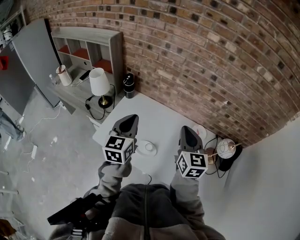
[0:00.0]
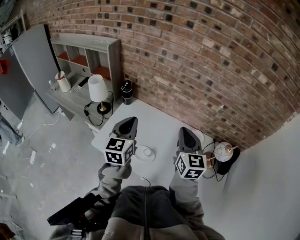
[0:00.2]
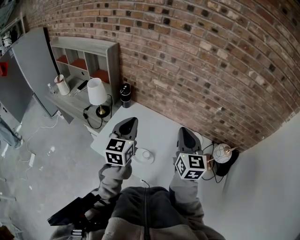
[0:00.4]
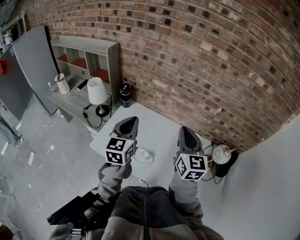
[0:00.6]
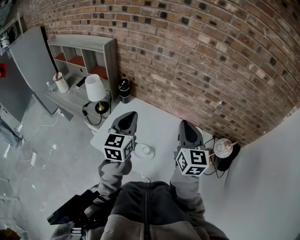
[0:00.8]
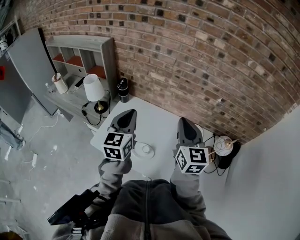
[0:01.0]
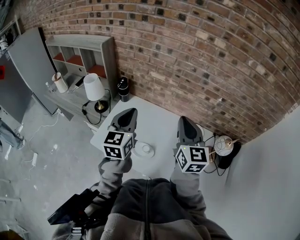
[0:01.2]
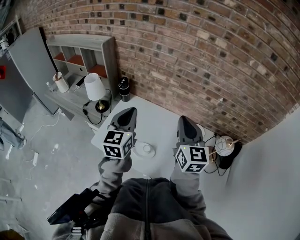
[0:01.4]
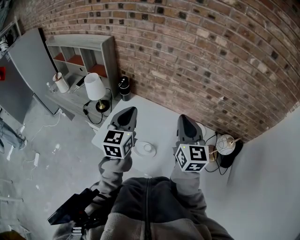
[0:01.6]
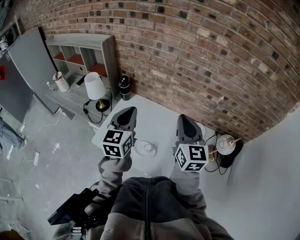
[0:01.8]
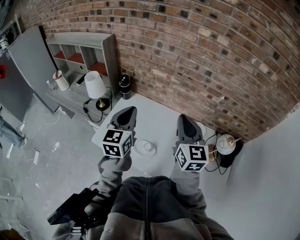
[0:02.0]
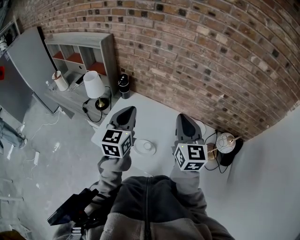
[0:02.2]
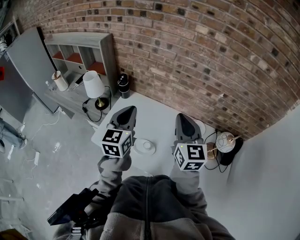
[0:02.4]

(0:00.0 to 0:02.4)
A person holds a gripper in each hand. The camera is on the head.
0:00.0 - 0:01.2: The right gripper goes approximately 5 cm upward.
0:01.2 - 0:02.4: Neither gripper changes place.

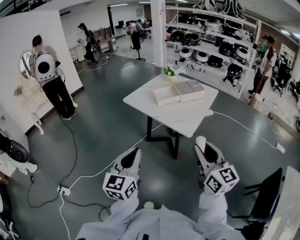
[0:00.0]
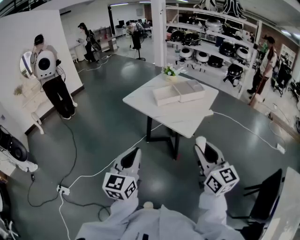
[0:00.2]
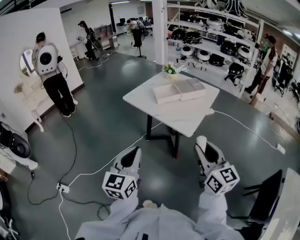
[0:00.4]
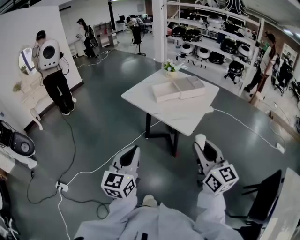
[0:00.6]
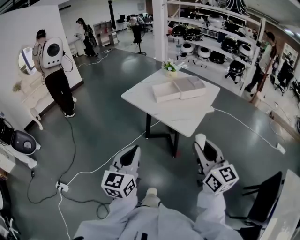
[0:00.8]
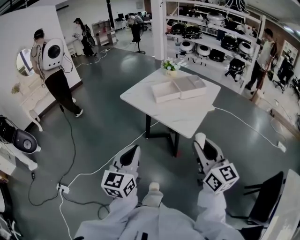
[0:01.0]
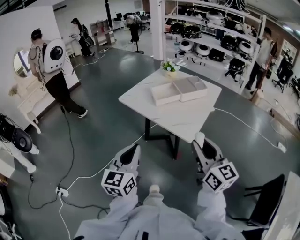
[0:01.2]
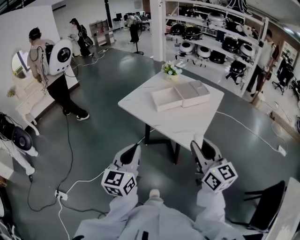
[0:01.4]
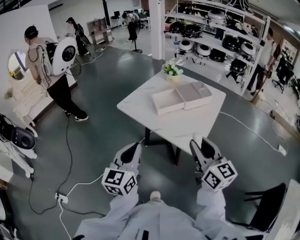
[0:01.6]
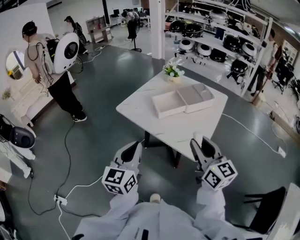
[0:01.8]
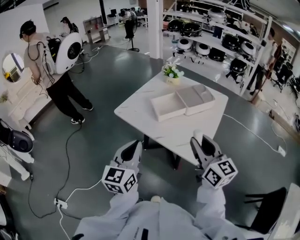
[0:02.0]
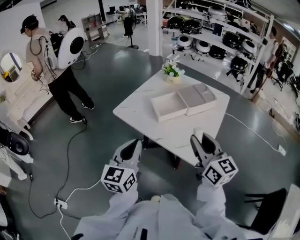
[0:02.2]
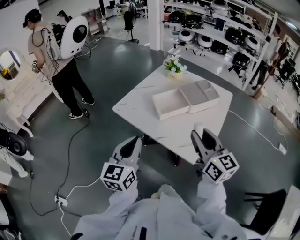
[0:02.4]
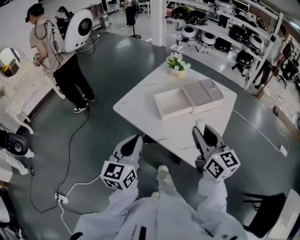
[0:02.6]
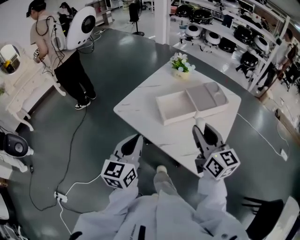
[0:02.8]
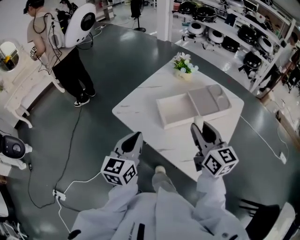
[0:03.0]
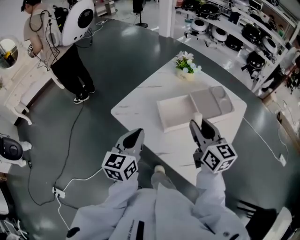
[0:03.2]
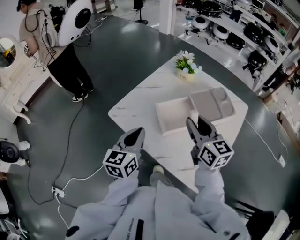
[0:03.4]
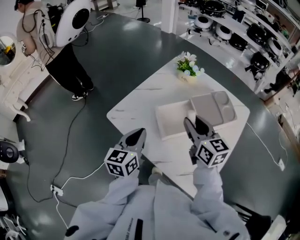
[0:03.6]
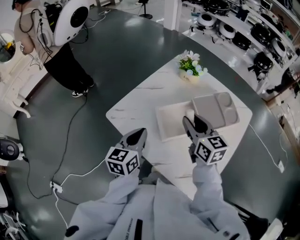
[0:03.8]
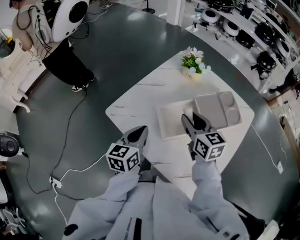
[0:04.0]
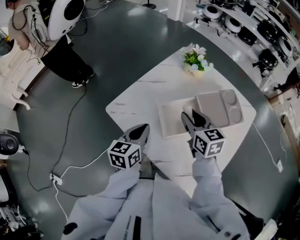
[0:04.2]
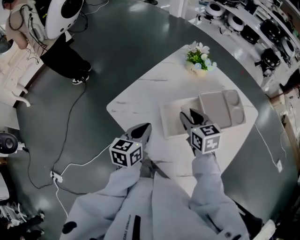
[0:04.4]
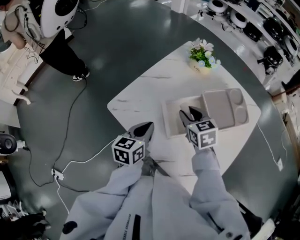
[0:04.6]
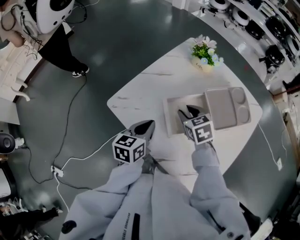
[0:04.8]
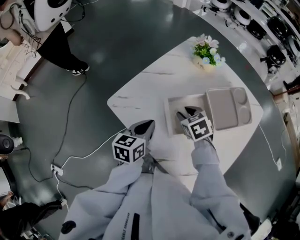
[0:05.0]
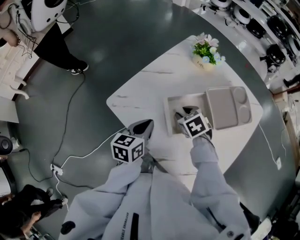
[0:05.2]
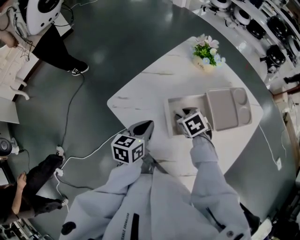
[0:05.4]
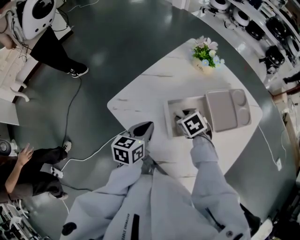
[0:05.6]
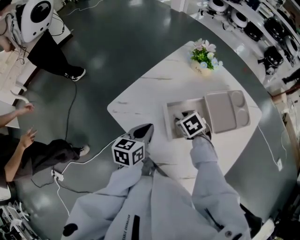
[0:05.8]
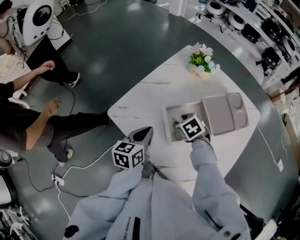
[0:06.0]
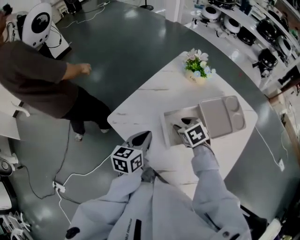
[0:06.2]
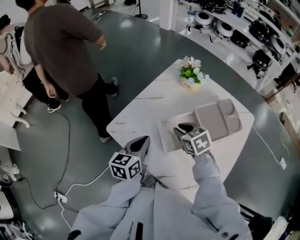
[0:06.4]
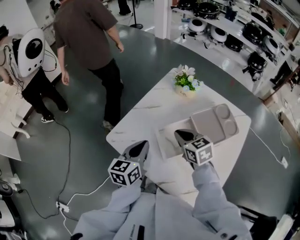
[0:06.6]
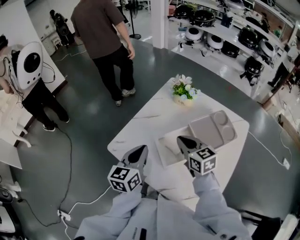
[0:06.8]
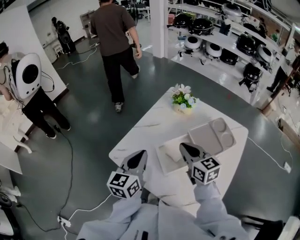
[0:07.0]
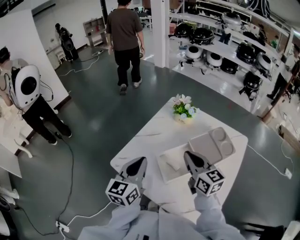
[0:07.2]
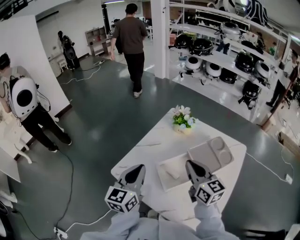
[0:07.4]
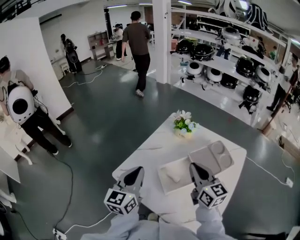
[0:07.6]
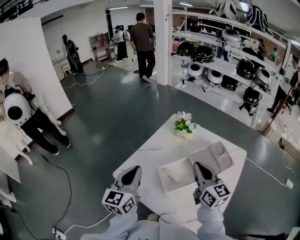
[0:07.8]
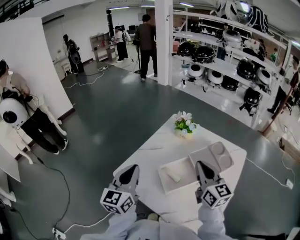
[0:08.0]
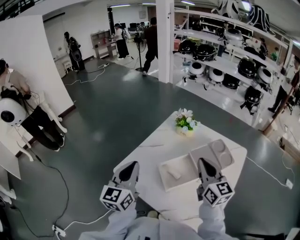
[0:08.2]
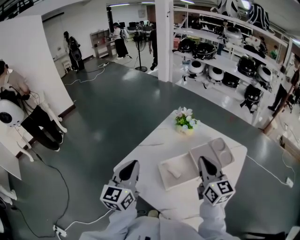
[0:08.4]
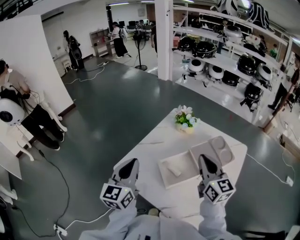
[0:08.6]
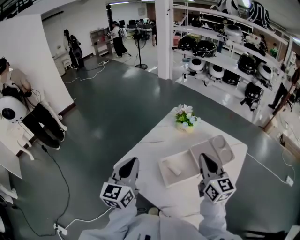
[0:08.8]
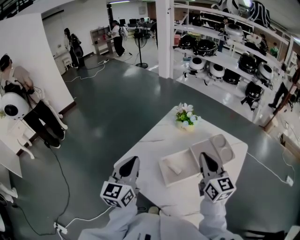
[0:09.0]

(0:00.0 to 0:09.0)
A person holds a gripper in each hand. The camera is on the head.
0:00.0 - 0:01.6: Both grippers move forward, roughly 20 cm.
0:01.6 - 0:03.0: Both grippers move forward, some 30 cm.
0:03.0 - 0:04.4: The grippers both shift forward and downward by some 20 cm. The left gripper rotates approximately 20 degrees. The right gripper changes its angle by some 30 degrees.
0:04.4 - 0:06.0: The right gripper moves downward, about 10 cm, and angles its fingers downward, by approximately 30 degrees.
0:06.0 - 0:07.6: Both grippers travel together upward, some 20 cm. The left gripper rotates roughly 30 degrees, while the right gripper tips its fingers upward by approximately 60 degrees, and closes its fingers.
0:07.6 - 0:09.0: There are only small adjustments of the grippers.

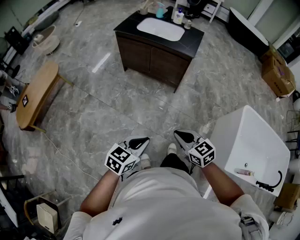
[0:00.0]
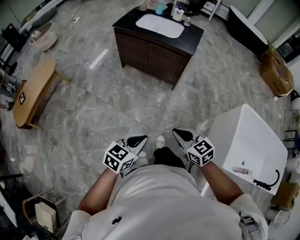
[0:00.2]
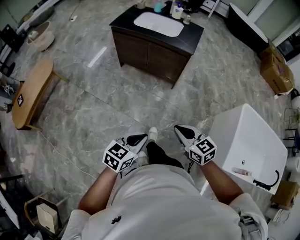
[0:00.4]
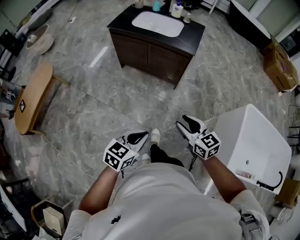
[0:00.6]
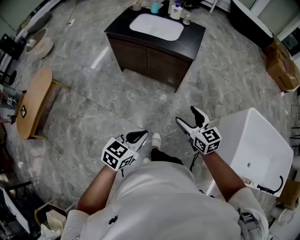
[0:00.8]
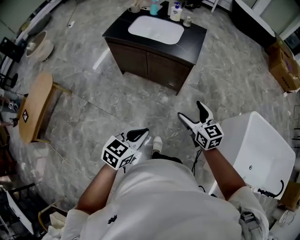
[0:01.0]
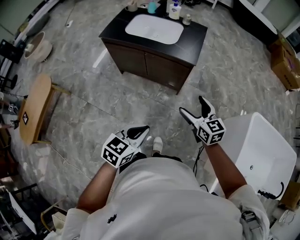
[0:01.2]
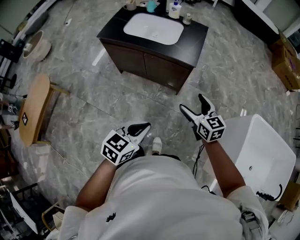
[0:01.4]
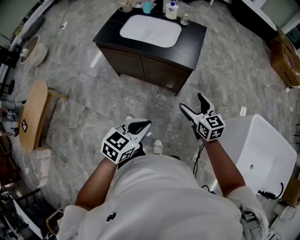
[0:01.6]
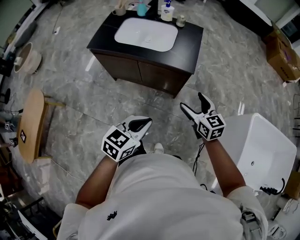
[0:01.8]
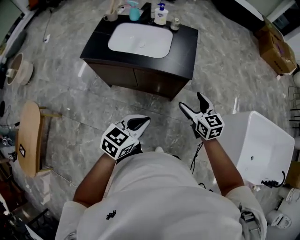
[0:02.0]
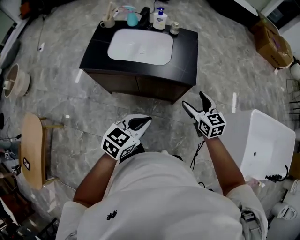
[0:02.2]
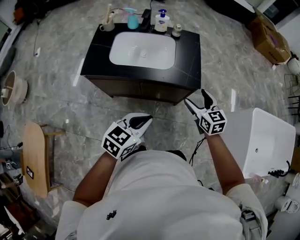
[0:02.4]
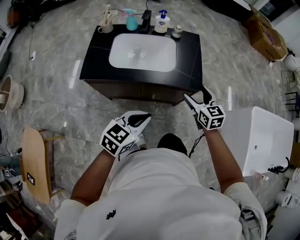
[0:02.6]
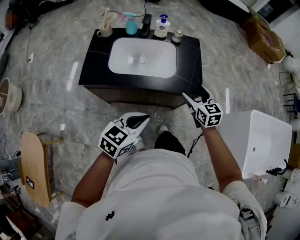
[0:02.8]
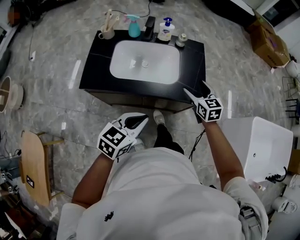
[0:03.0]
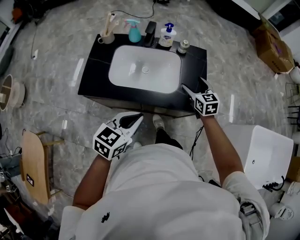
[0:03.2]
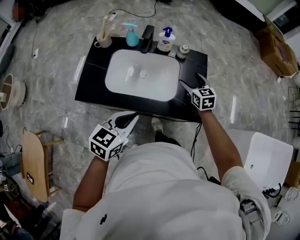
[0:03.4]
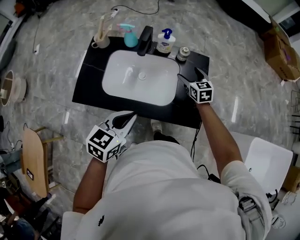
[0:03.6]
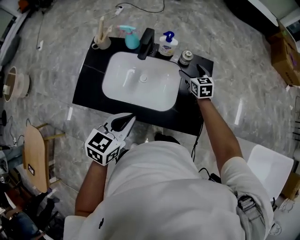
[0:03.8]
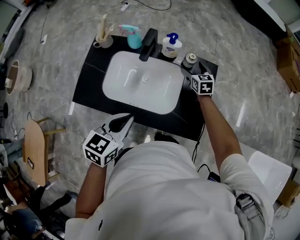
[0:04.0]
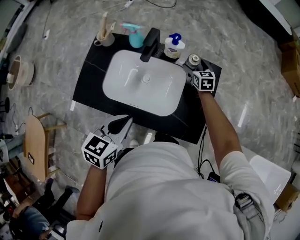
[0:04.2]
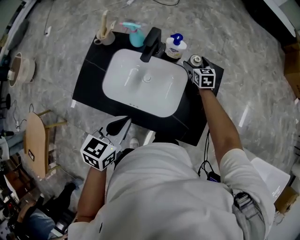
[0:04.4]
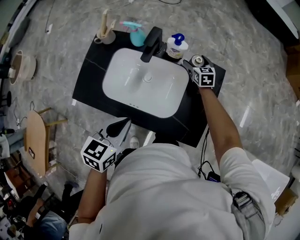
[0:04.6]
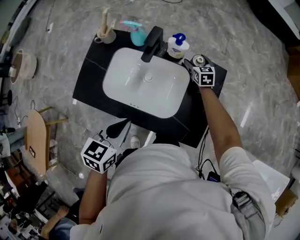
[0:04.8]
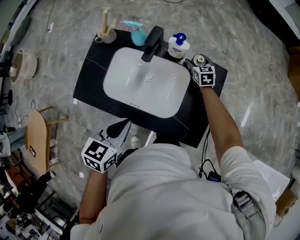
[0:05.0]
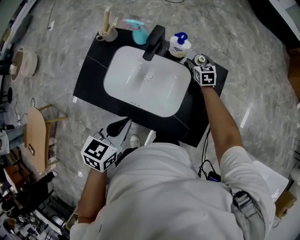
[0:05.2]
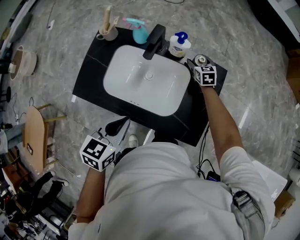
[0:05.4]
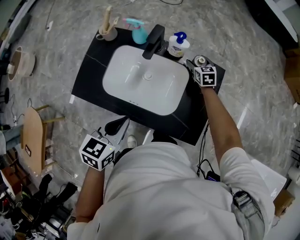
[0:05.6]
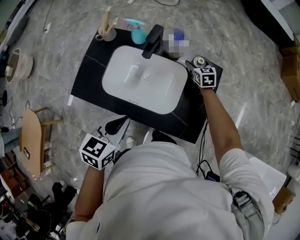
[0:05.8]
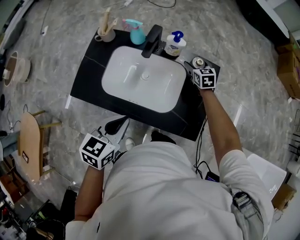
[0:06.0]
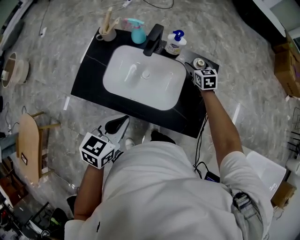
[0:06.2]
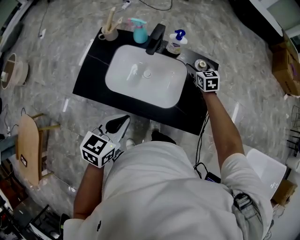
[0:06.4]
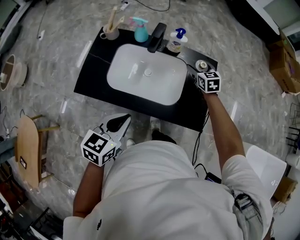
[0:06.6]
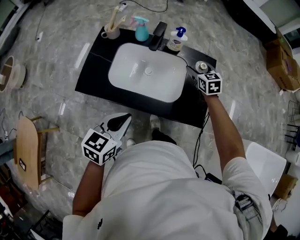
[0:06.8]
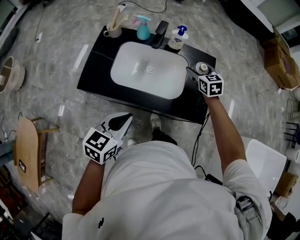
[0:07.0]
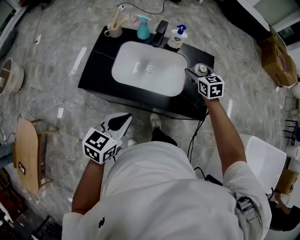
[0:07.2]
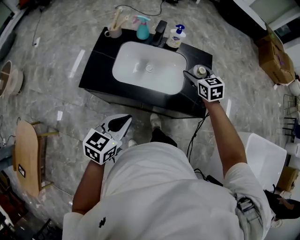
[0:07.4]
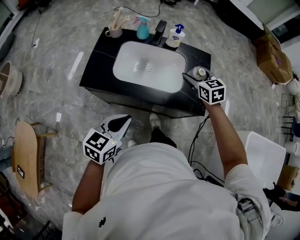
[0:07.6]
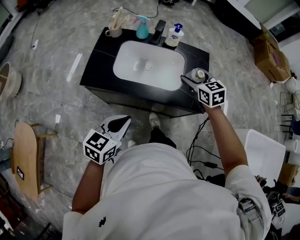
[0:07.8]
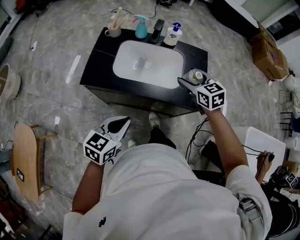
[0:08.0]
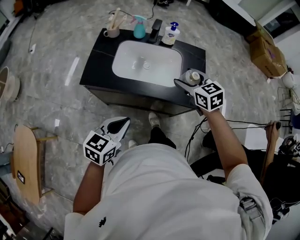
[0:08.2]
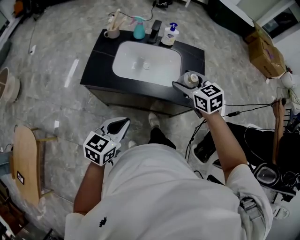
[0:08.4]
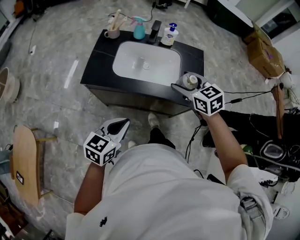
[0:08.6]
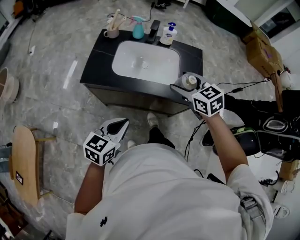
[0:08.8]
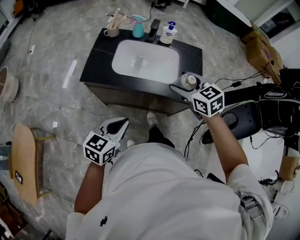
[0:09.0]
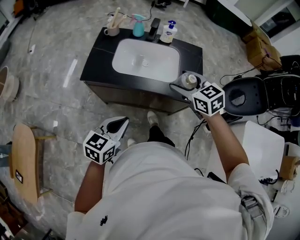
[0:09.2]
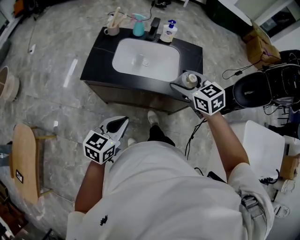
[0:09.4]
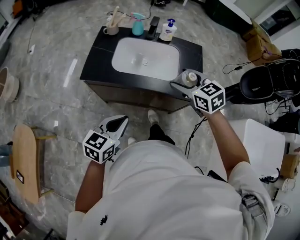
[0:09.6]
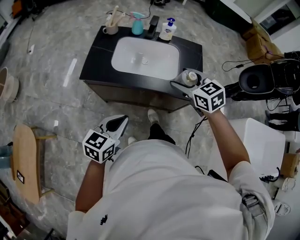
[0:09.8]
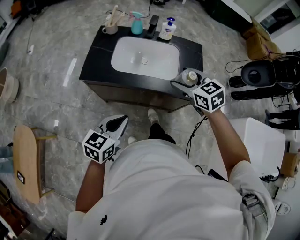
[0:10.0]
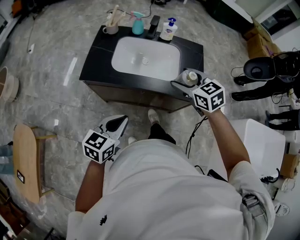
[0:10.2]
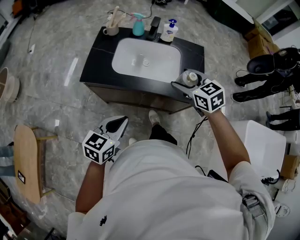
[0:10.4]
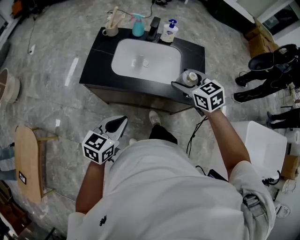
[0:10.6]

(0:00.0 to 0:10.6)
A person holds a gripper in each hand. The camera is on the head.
0:00.0 - 0:01.6: The two grippers go approximately 40 cm forward. The right gripper turns by some 20 degrees, and opens up.
0:01.6 - 0:03.0: Both grippers move forward and to the left, about 35 cm. The right gripper swivels roughly 20 degrees.
0:03.0 - 0:04.6: The left gripper is displaced forward by some 20 cm, and changes its angle by about 30 degrees; the right gripper travels forward and downward by roughly 40 cm.
0:04.6 - 0:06.0: The right gripper ends up roughly 5 cm from where it was.
0:06.0 - 0:07.6: The right gripper travels backward and upward by roughly 30 cm. Meanwhile the left gripper goes some 15 cm backward and to the left.
0:07.6 - 0:09.0: The right gripper moves backward, upward and to the left, some 20 cm, while the left gripper goes roughly 10 cm backward.
0:09.0 - 0:10.6: The grippers stay close to where they were, moving slightly.

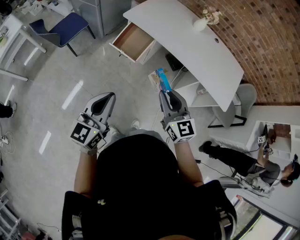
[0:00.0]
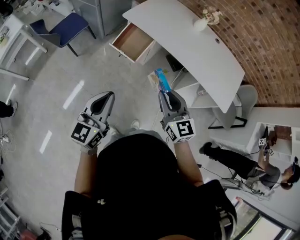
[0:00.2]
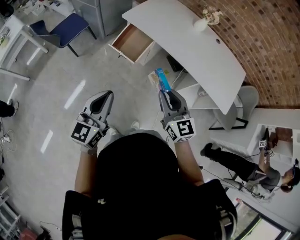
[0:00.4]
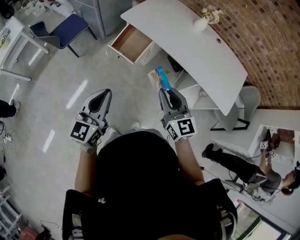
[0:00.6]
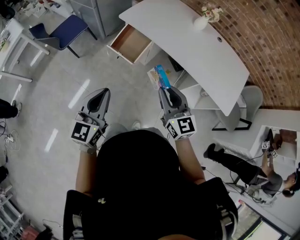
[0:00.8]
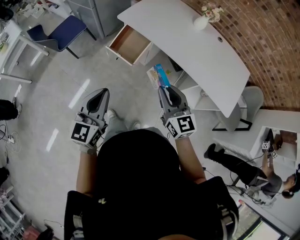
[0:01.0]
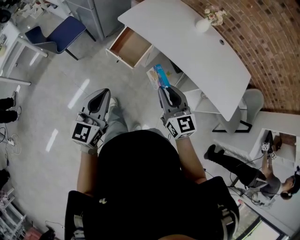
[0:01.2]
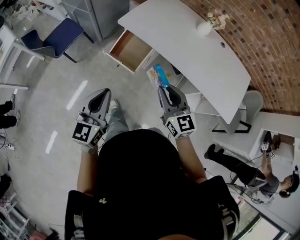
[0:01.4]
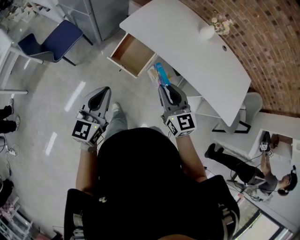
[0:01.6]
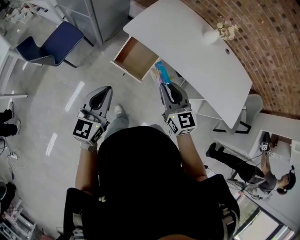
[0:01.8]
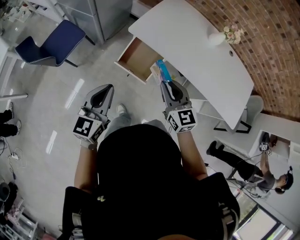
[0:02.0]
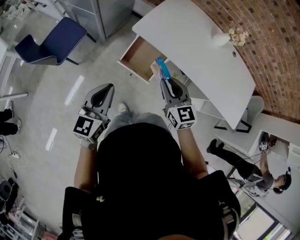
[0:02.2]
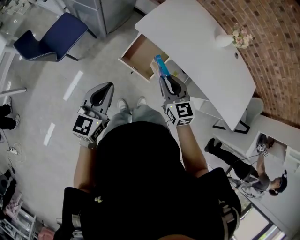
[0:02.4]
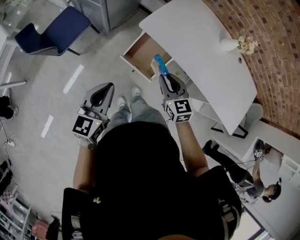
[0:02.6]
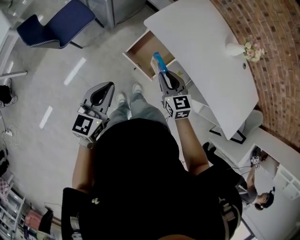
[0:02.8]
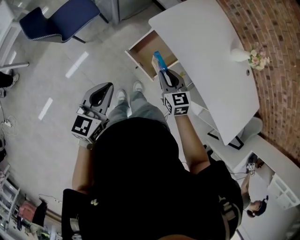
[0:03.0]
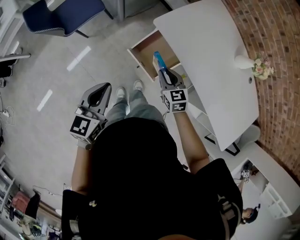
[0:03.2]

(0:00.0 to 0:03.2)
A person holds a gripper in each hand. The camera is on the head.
0:00.0 - 0:01.6: The two grippers go some 20 cm forward.
0:01.6 - 0:03.2: The right gripper travels forward, downward and to the left by some 30 cm, and turns by approximately 30 degrees. Meanwhile the left gripper goes some 20 cm forward, to the left and downward.
